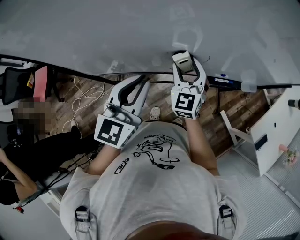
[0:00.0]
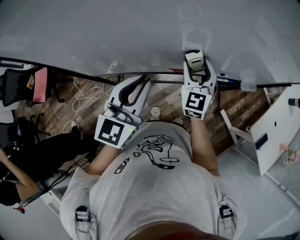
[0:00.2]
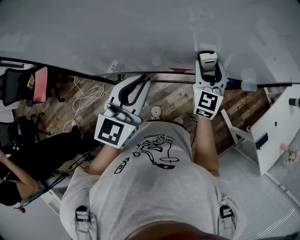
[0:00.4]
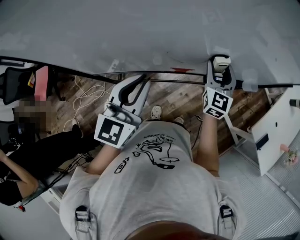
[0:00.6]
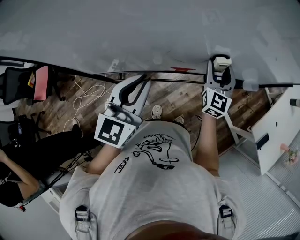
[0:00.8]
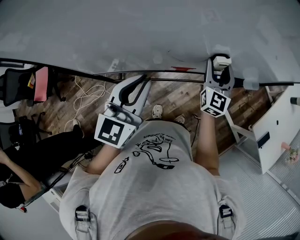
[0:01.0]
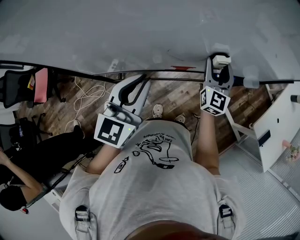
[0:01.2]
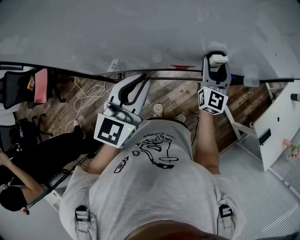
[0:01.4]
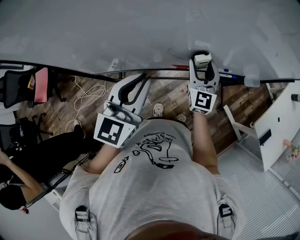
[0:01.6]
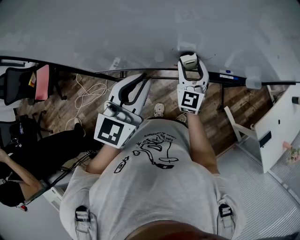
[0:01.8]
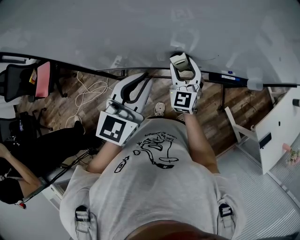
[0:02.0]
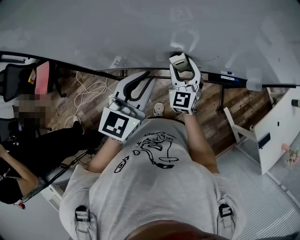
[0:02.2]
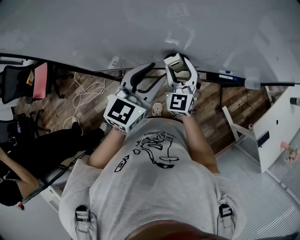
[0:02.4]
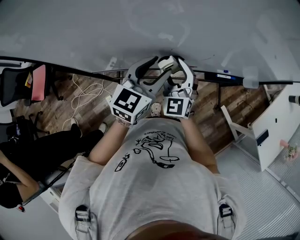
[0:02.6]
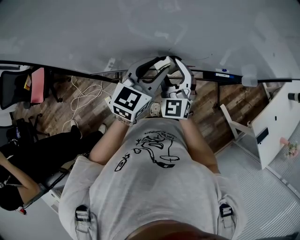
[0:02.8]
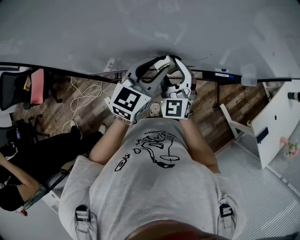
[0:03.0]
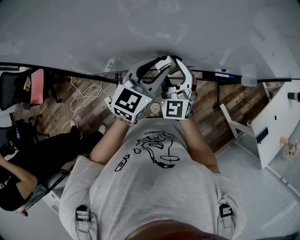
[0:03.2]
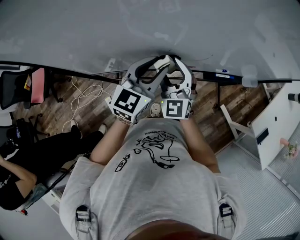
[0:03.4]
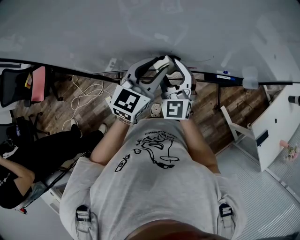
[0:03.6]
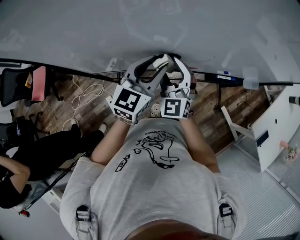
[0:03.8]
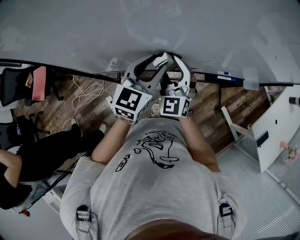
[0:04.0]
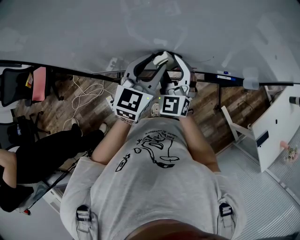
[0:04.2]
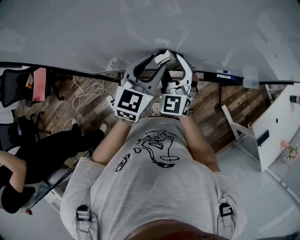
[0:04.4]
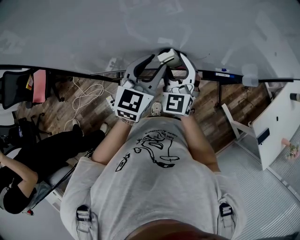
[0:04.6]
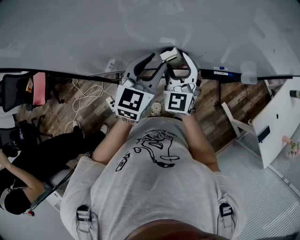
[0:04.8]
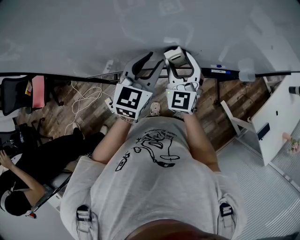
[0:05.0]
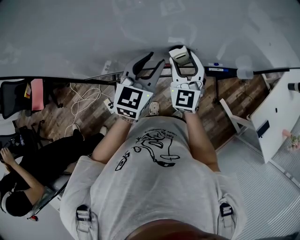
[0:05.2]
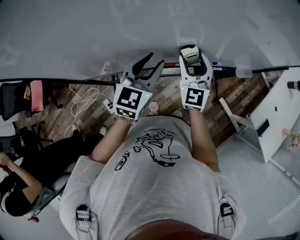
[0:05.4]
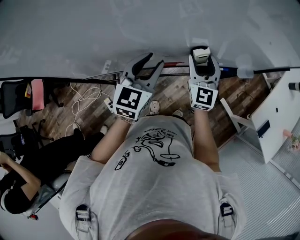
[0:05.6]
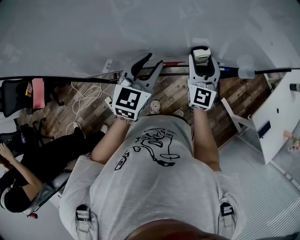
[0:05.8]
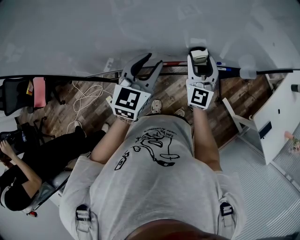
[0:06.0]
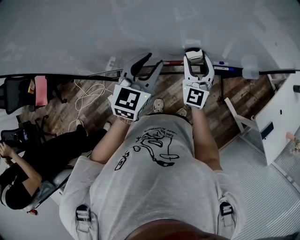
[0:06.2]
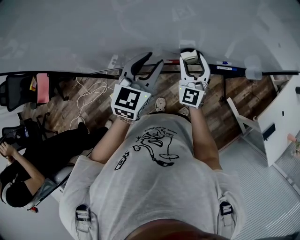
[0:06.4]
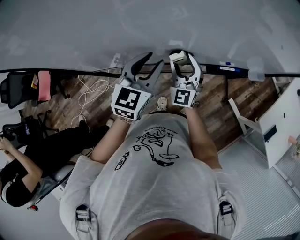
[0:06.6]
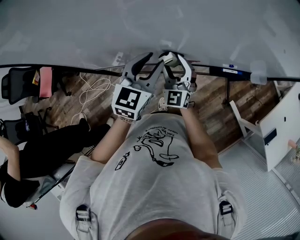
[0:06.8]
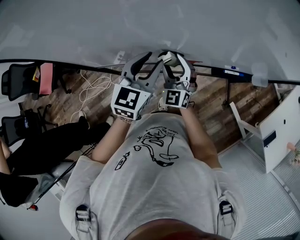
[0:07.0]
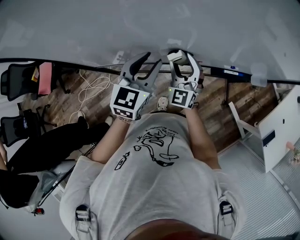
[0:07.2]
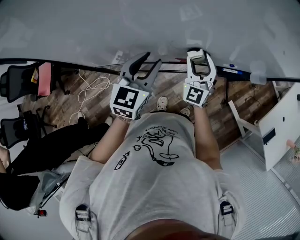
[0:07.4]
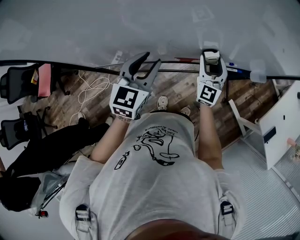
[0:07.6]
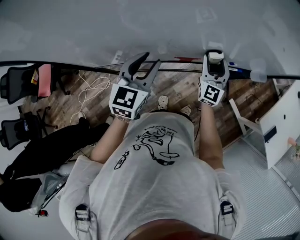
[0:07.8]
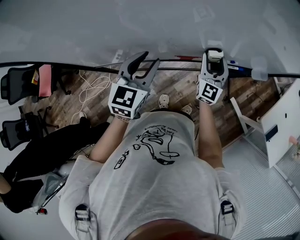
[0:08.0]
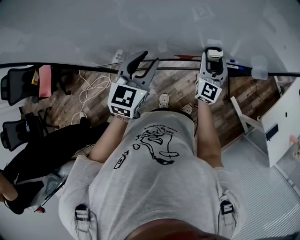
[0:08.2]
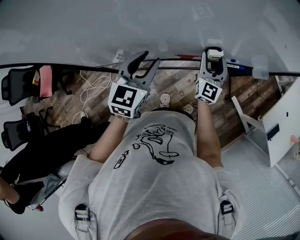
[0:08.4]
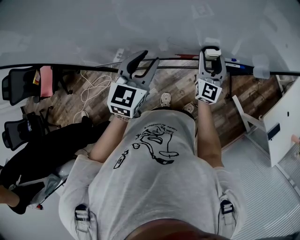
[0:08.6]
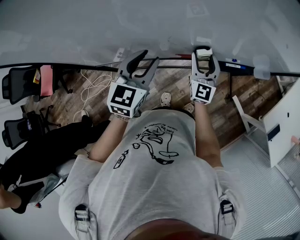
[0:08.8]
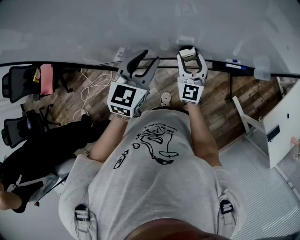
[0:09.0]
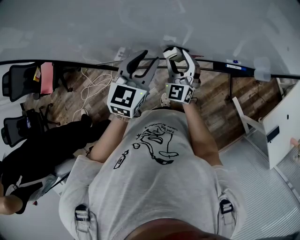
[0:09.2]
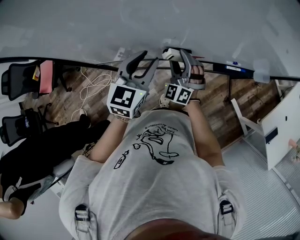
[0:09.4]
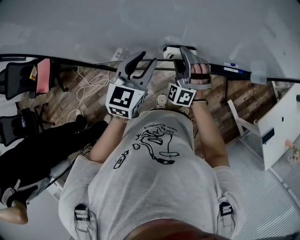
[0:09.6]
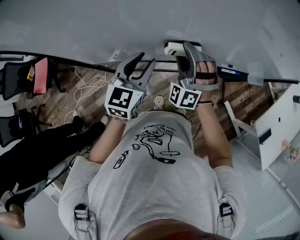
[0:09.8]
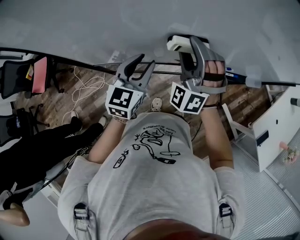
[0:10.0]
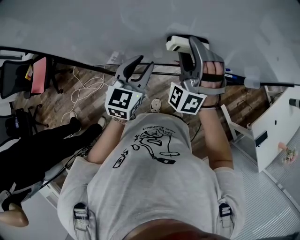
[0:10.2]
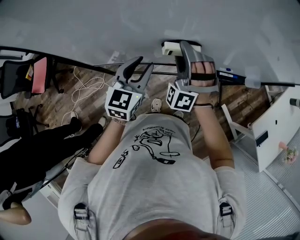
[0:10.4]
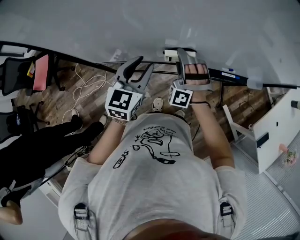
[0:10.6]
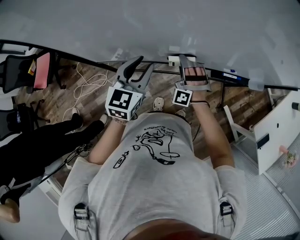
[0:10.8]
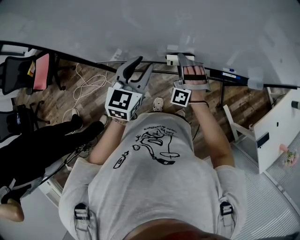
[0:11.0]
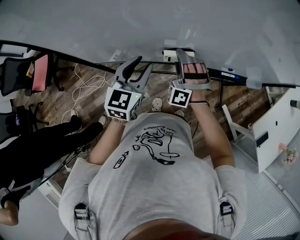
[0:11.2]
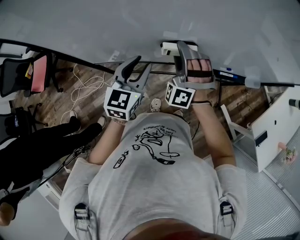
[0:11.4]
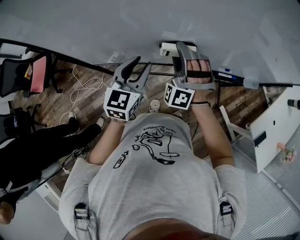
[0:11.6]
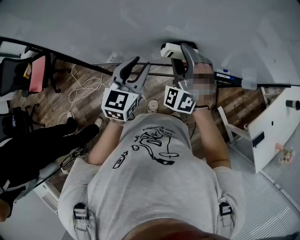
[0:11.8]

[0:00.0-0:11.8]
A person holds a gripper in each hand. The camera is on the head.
0:00.0 to 0:01.4: The right gripper moves to the right, roughly 10 cm, and rotates about 20 degrees.
0:01.4 to 0:03.0: The left gripper shifts roughly 10 cm forward and downward, and opens its fingers, while the right gripper goes some 20 cm to the left and backward, and swivels approximately 30 degrees.
0:03.0 to 0:04.4: The grippers stay close to where they were, moving slightly.
0:04.4 to 0:06.0: The right gripper is displaced to the right by approximately 15 cm, and changes its angle by about 20 degrees.
0:06.0 to 0:07.4: The grippers both shift to the left by roughly 5 cm.
0:07.4 to 0:08.8: The right gripper moves about 10 cm to the right and comes back.
0:08.8 to 0:10.4: The right gripper moves to the left and upward, approximately 15 cm, and twists roughly 70 degrees counterclockwise, seen from behind.
0:10.4 to 0:11.8: The right gripper goes downward and returns, approximately 15 cm each way.

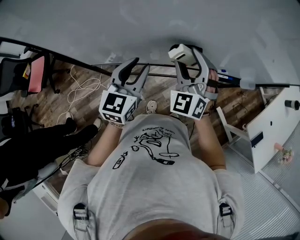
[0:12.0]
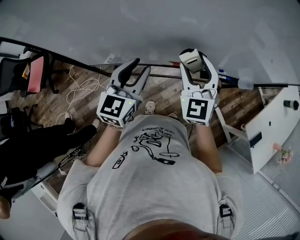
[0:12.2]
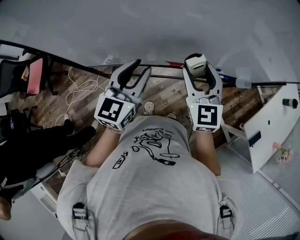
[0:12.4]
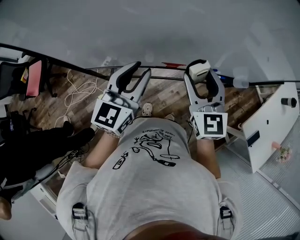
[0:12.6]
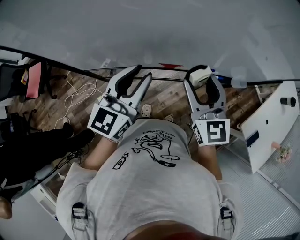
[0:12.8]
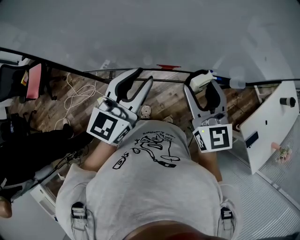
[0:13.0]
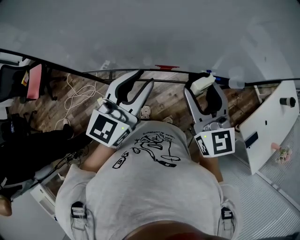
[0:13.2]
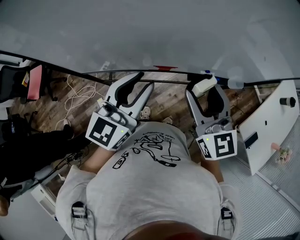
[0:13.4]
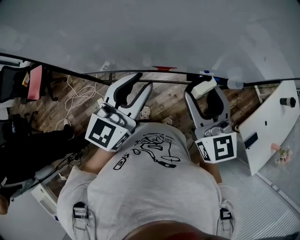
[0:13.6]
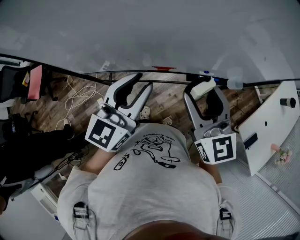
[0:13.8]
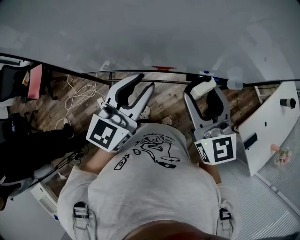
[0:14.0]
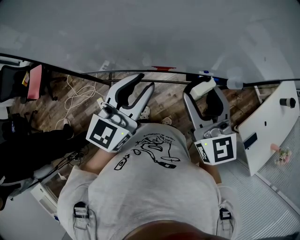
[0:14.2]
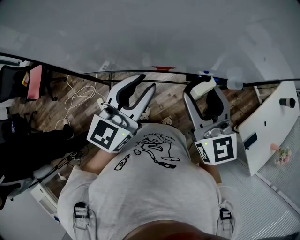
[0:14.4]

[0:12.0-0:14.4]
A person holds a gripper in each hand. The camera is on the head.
0:12.0 to 0:13.2: The left gripper moves upward and to the right, about 15 cm. The right gripper moves to the right, backward and upward, some 15 cm, and twists roughly 40 degrees clockwise, seen from behind.
0:13.2 to 0:14.4: The grippers move only a little.

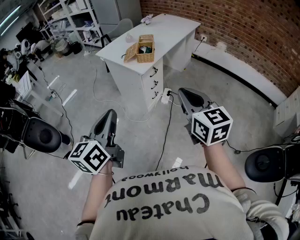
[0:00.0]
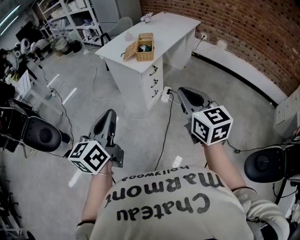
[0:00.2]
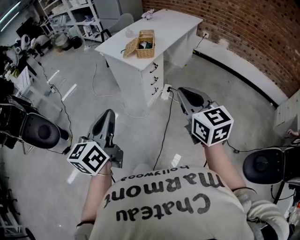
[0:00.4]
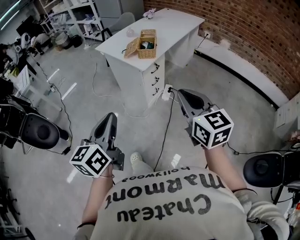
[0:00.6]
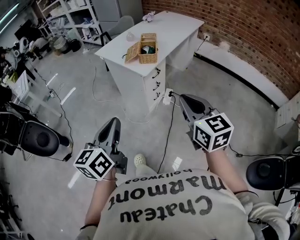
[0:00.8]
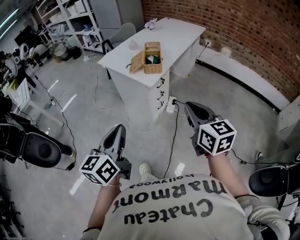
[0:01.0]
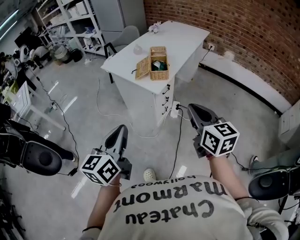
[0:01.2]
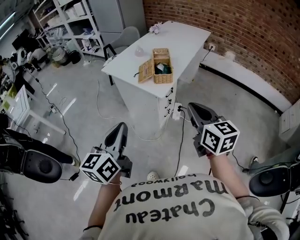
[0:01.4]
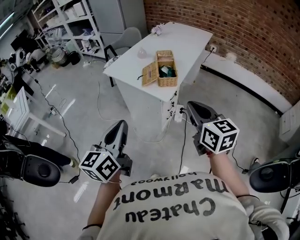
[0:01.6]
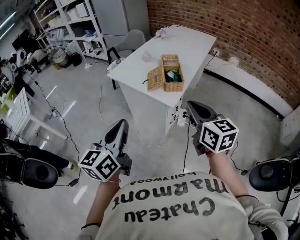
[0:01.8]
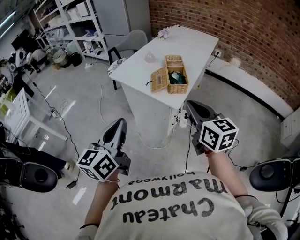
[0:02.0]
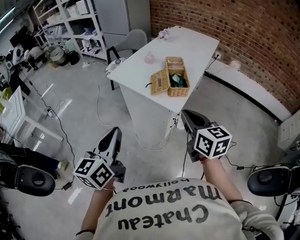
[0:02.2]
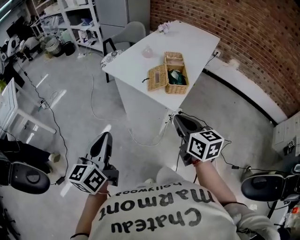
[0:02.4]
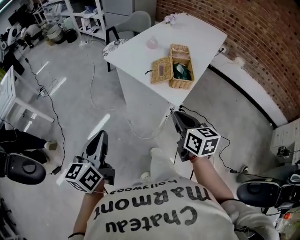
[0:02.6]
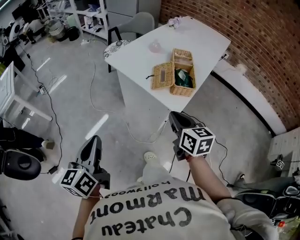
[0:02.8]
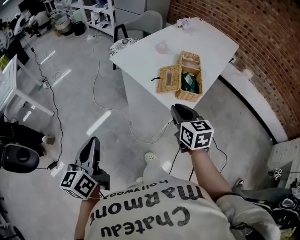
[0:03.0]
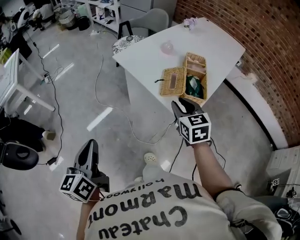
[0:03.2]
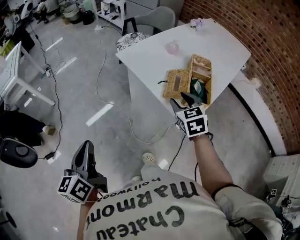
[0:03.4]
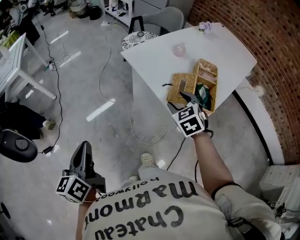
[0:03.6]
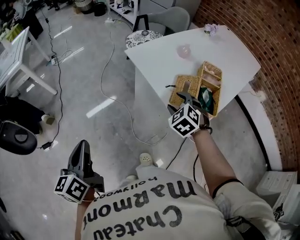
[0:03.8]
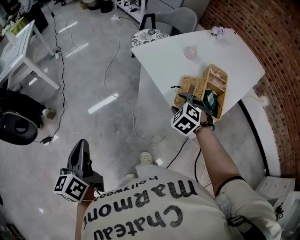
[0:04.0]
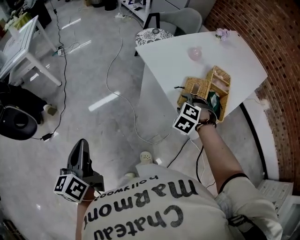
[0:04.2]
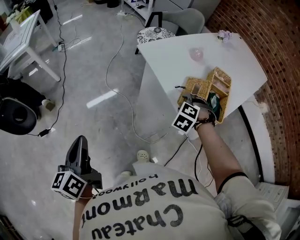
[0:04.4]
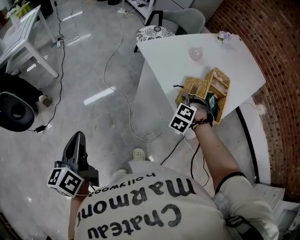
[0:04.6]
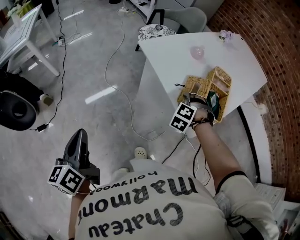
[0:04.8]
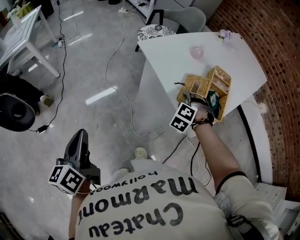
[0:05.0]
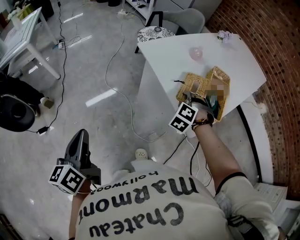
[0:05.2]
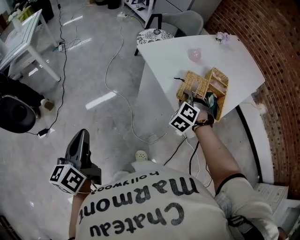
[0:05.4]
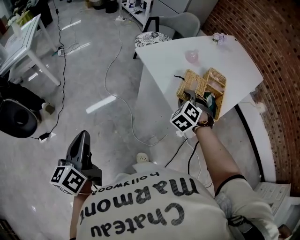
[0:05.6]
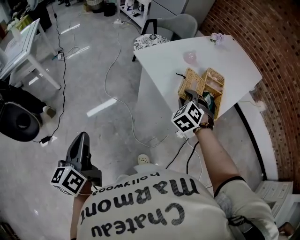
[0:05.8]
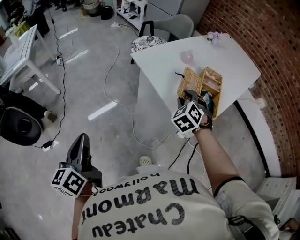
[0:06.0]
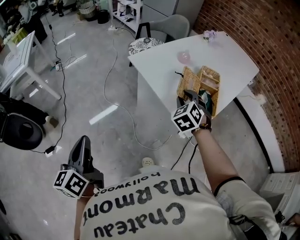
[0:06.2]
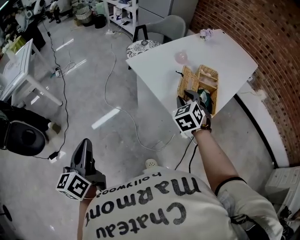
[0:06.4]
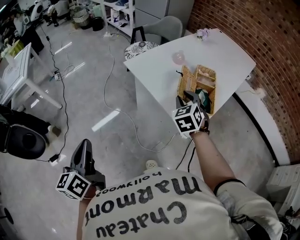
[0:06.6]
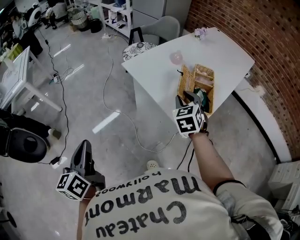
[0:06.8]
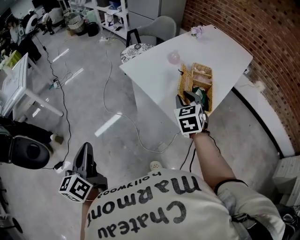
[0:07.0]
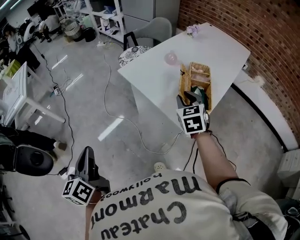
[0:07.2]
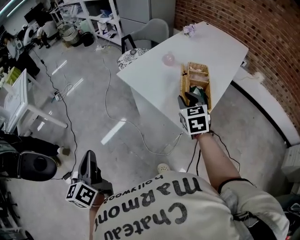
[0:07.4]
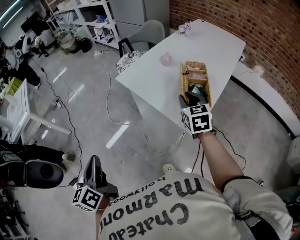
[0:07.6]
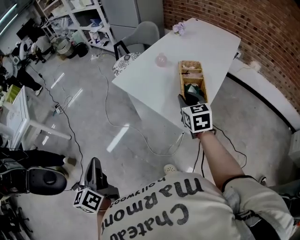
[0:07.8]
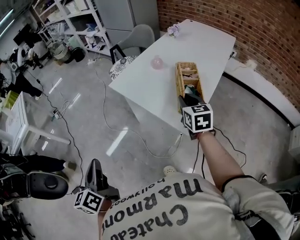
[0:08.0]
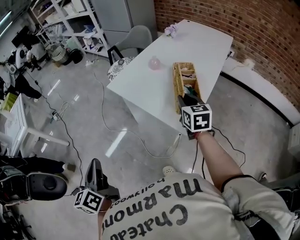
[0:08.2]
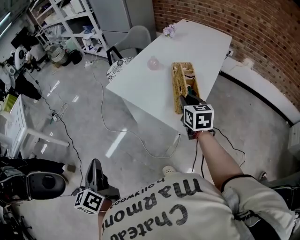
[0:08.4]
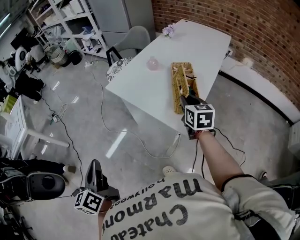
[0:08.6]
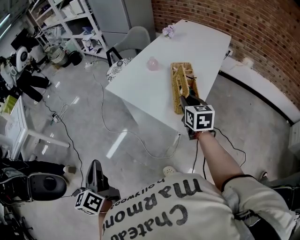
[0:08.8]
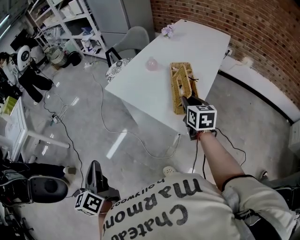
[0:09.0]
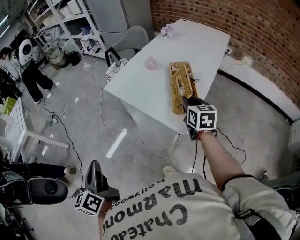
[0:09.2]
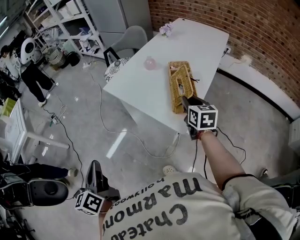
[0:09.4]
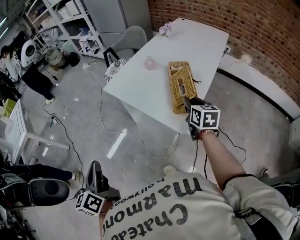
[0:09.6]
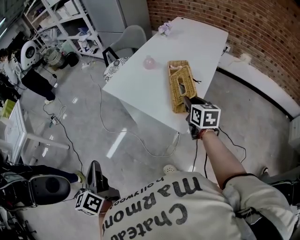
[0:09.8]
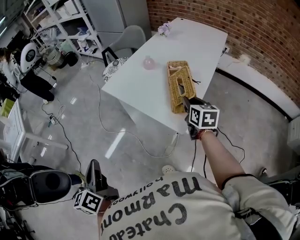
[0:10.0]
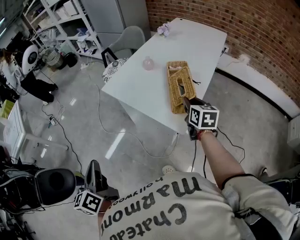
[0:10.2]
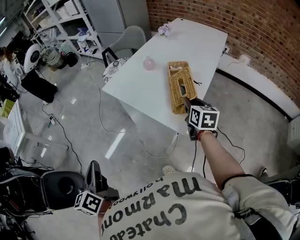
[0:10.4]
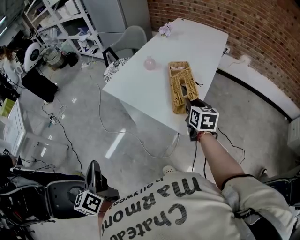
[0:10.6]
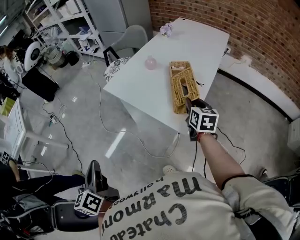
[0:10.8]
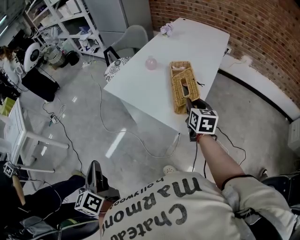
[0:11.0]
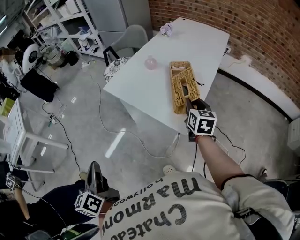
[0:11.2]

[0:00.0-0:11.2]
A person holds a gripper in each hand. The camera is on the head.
0:00.0 to 0:01.6: The grippers both shift forward and to the left by some 25 cm.
0:01.6 to 0:03.2: The left gripper moves to the left, forward and downward, about 25 cm, and swivels roughly 30 degrees. The right gripper moves forward, downward and to the left, some 35 cm, changes its angle by approximately 30 degrees, and opens up.
0:03.2 to 0:04.8: The left gripper is displaced to the left by about 5 cm. The right gripper goes about 15 cm downward and forward, and rolls counterclockwise, seen from behind, by approximately 70 degrees.
0:04.8 to 0:06.4: The right gripper shifts about 15 cm upward, and rotates around the line of its fingers by about 50 degrees, clockwise from behind.
0:06.4 to 0:08.0: The right gripper goes some 10 cm to the right, and rotates around the line of its fingers by approximately 40 degrees, clockwise from behind.
0:08.0 to 0:09.6: The right gripper is displaced to the right by about 5 cm.
0:09.6 to 0:11.2: There are only small adjustments of the grippers.
